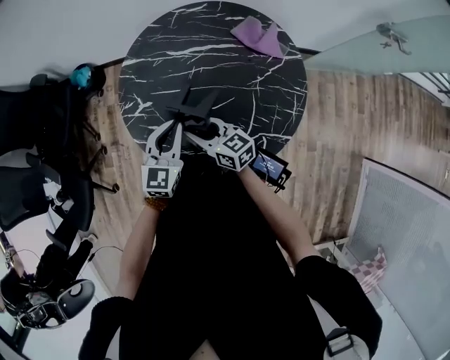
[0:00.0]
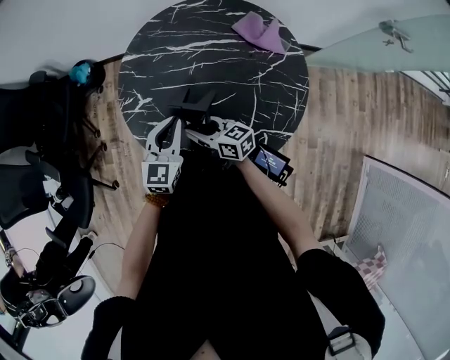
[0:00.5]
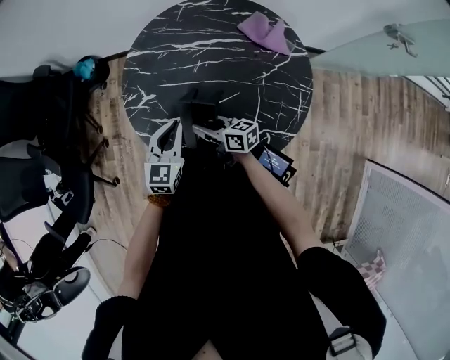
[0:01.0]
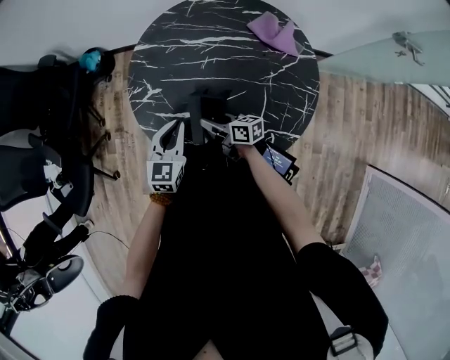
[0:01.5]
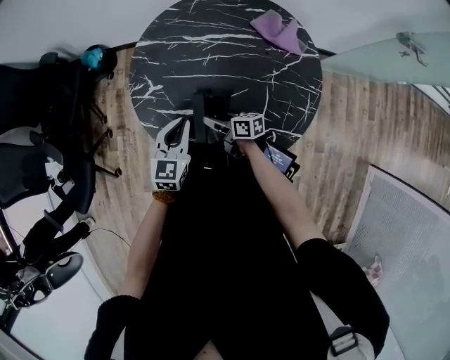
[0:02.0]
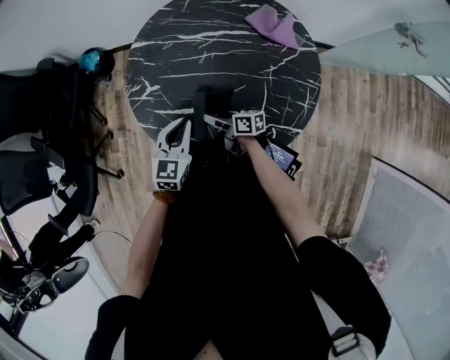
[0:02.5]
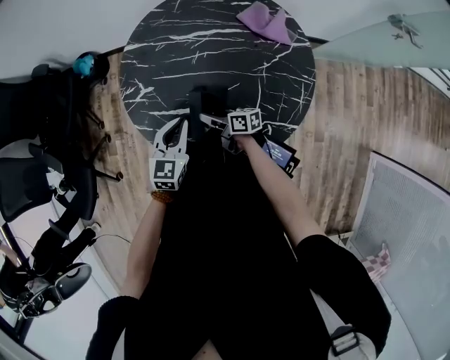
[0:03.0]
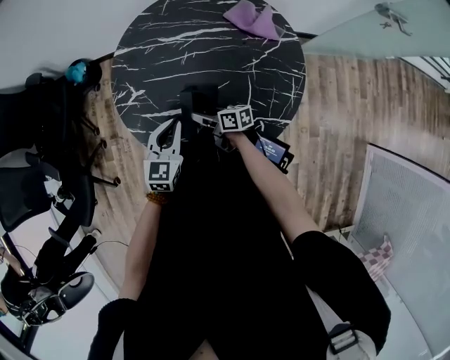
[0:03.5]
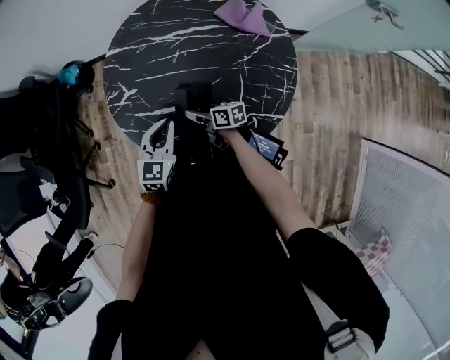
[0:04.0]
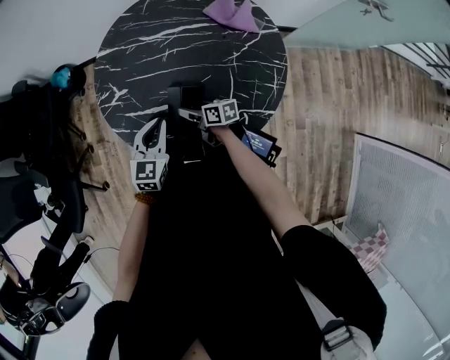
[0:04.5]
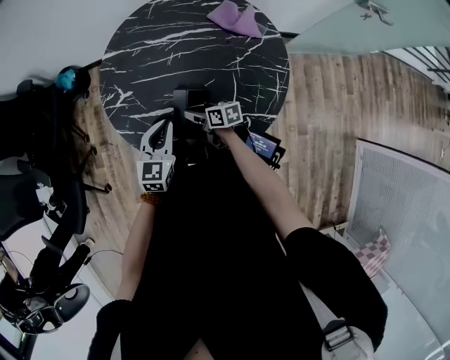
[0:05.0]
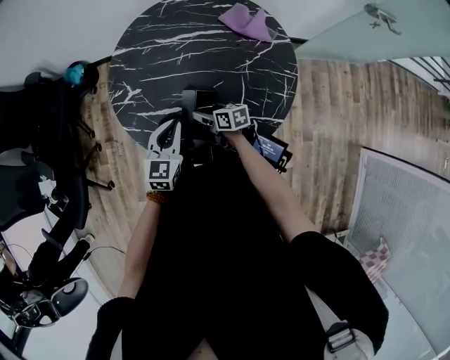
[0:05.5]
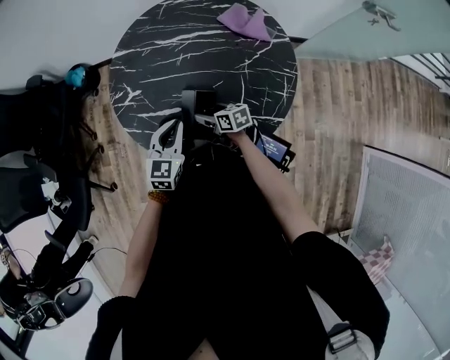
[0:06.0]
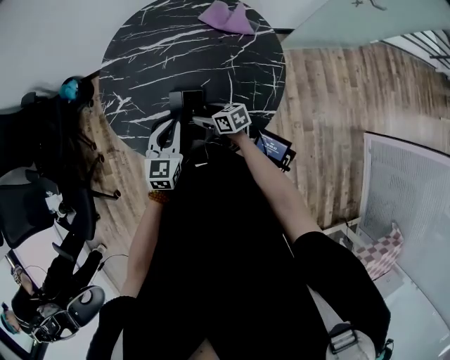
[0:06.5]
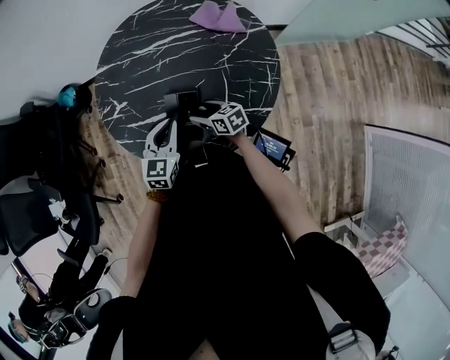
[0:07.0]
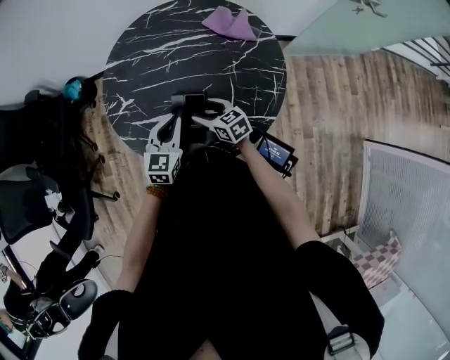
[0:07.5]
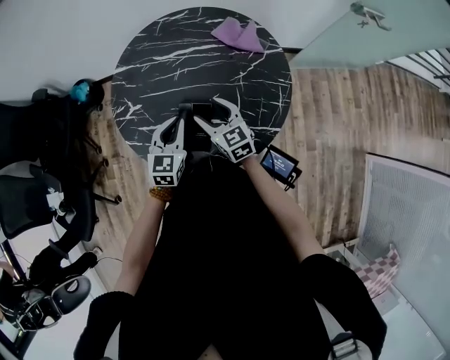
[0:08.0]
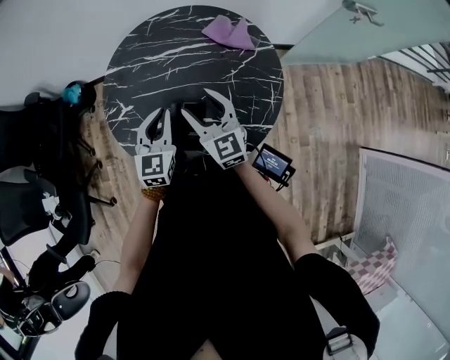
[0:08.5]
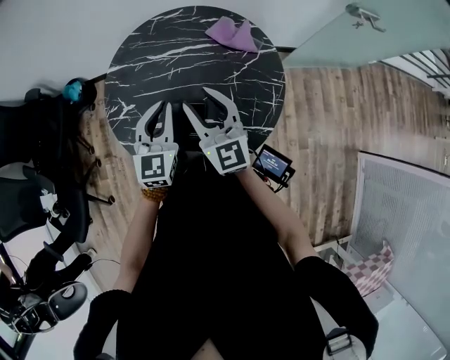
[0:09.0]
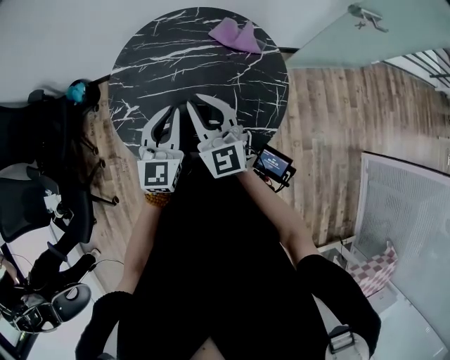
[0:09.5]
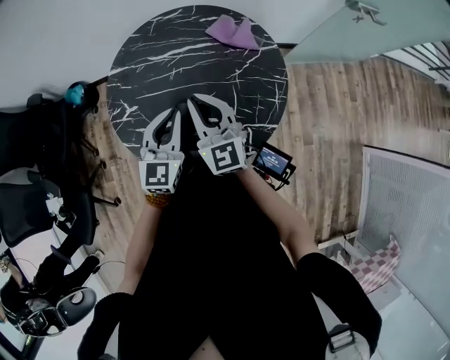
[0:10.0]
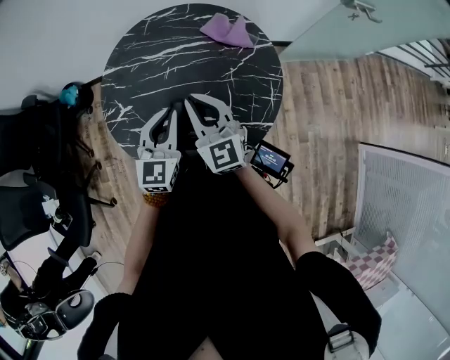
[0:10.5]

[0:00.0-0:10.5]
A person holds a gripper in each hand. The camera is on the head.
0:00.0 to 0:02.0: The right gripper shifts approximately 15 cm downward, and changes its angle by some 30 degrees; the left gripper shifts approximately 5 cm downward.
0:02.0 to 0:04.0: The grippers make only small movements.
0:04.0 to 0:06.5: The right gripper moves roughly 5 cm.
0:06.5 to 0:08.5: The left gripper moves upward and forward, some 10 cm. The right gripper moves upward, roughly 25 cm, and turns by about 50 degrees.
0:08.5 to 0:10.5: The right gripper closes its fingers.

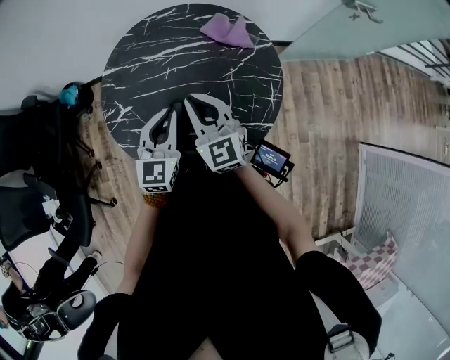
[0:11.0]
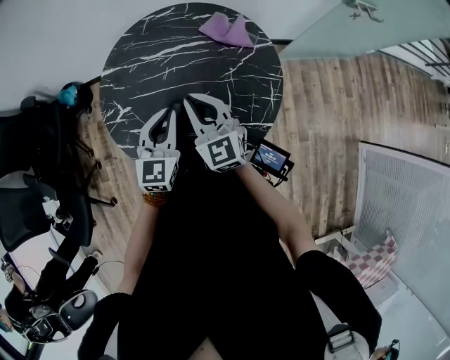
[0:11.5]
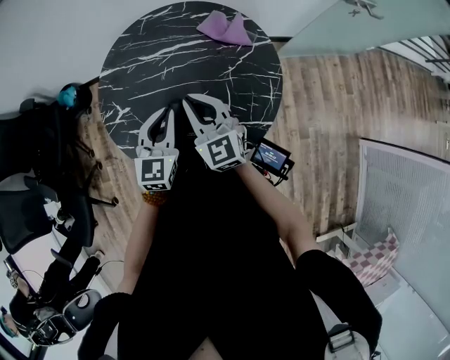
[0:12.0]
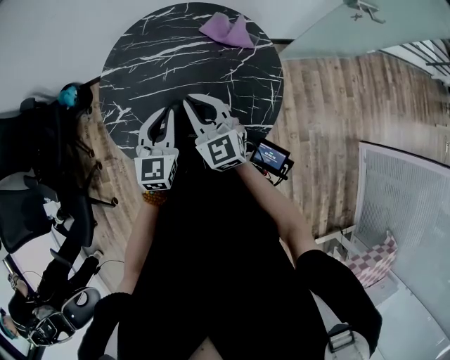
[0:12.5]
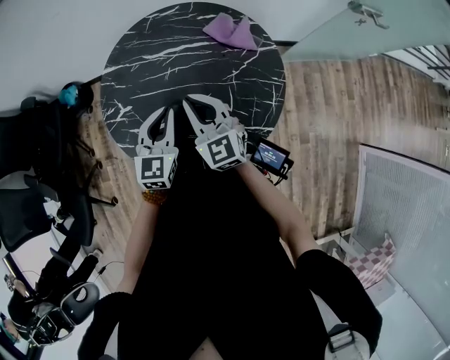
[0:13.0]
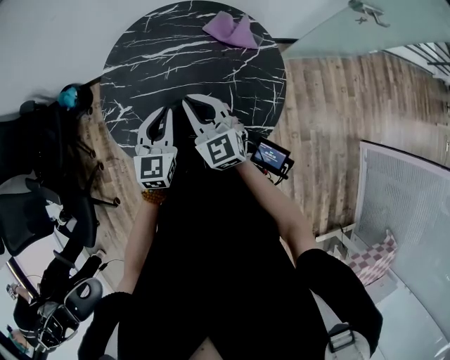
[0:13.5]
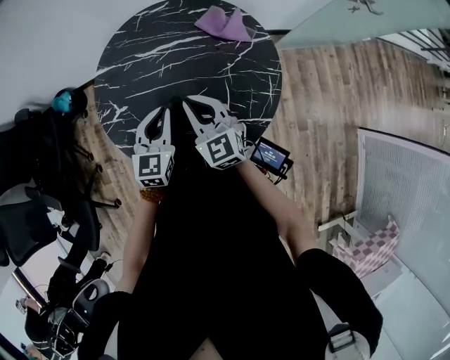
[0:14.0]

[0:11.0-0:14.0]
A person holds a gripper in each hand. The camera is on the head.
0:11.0 to 0:14.0: The grippers make only small movements.

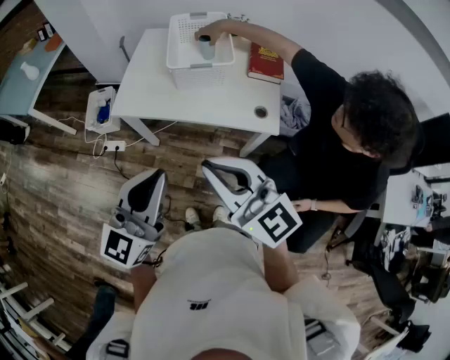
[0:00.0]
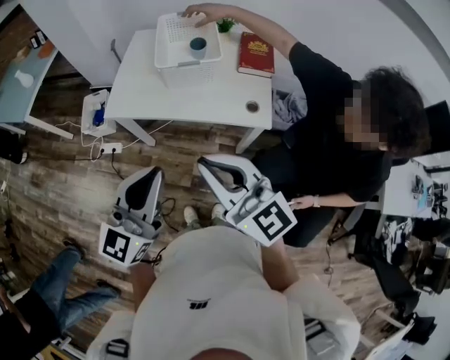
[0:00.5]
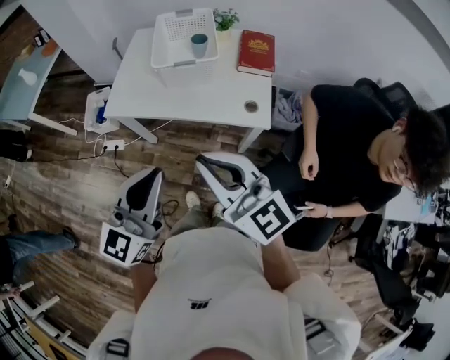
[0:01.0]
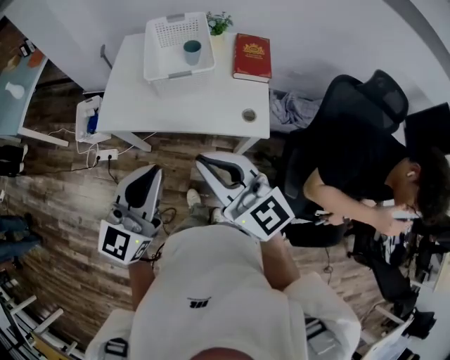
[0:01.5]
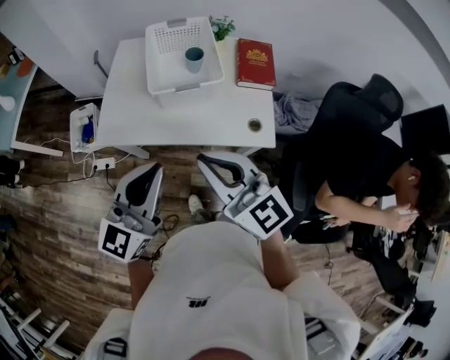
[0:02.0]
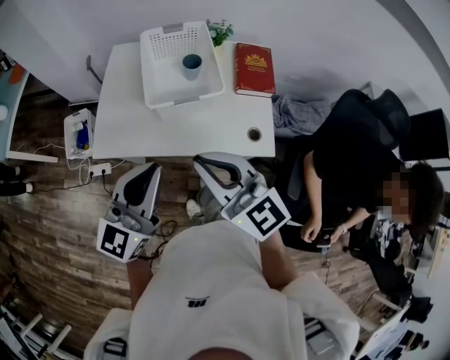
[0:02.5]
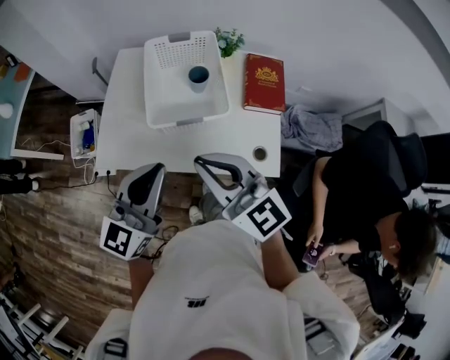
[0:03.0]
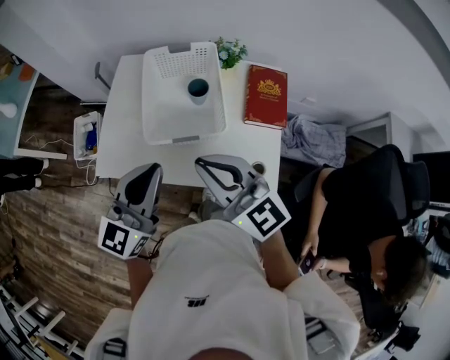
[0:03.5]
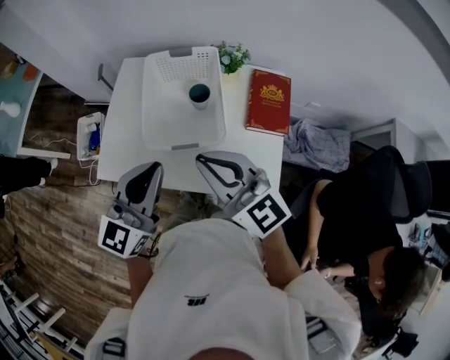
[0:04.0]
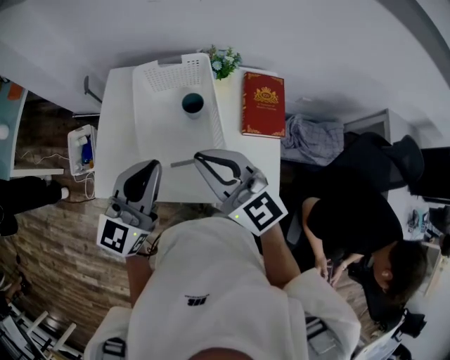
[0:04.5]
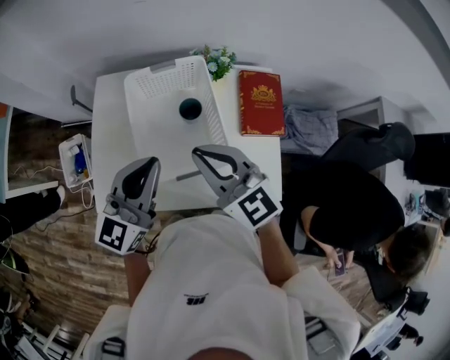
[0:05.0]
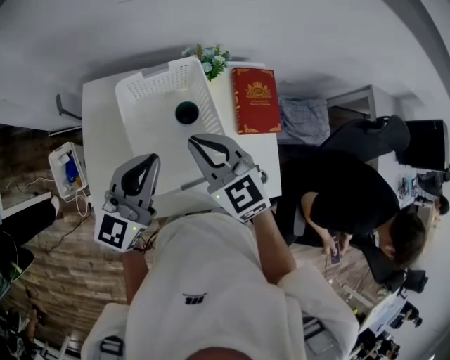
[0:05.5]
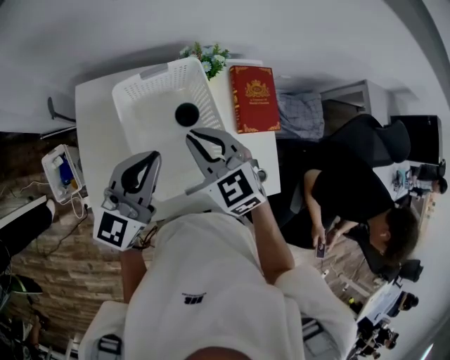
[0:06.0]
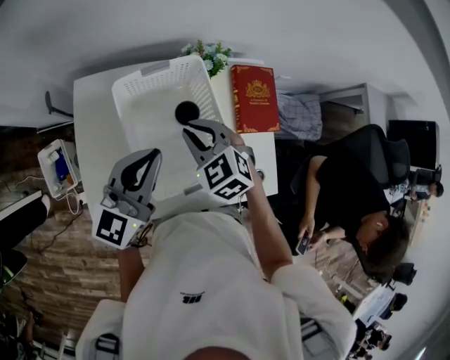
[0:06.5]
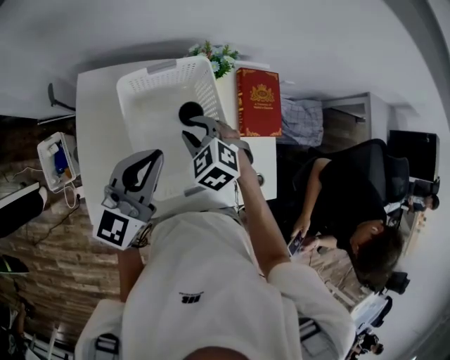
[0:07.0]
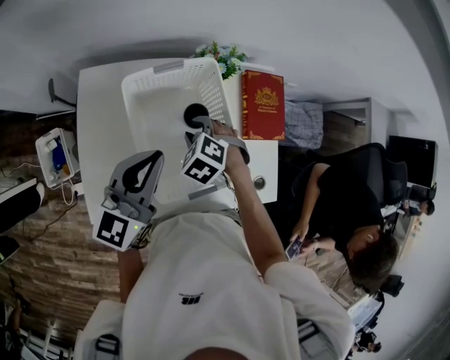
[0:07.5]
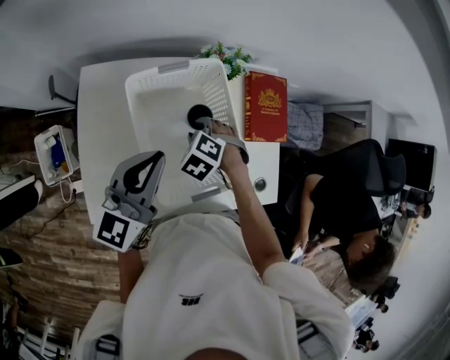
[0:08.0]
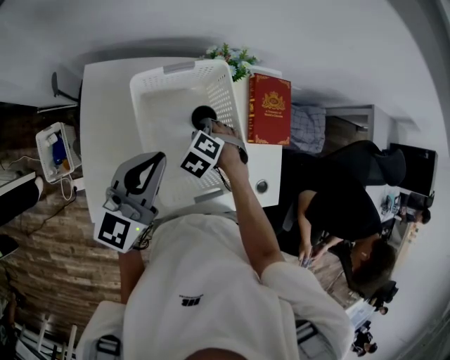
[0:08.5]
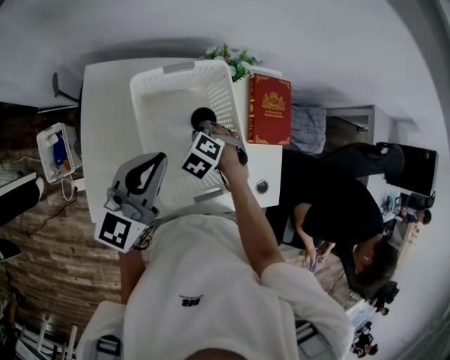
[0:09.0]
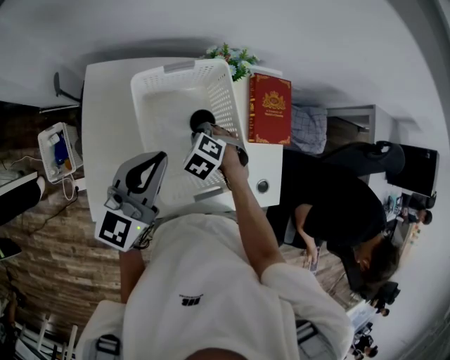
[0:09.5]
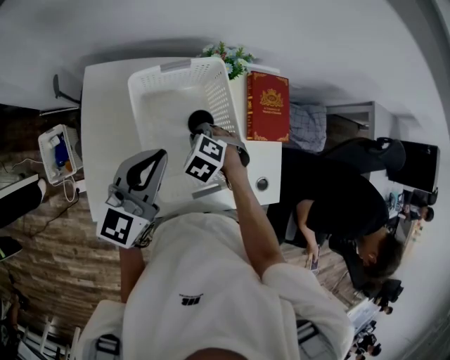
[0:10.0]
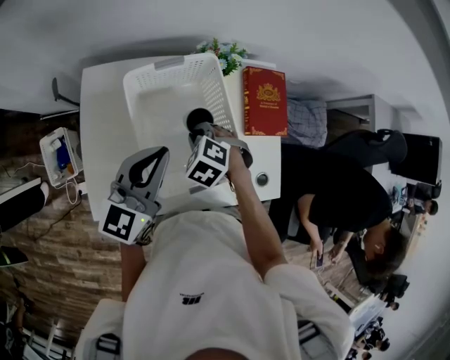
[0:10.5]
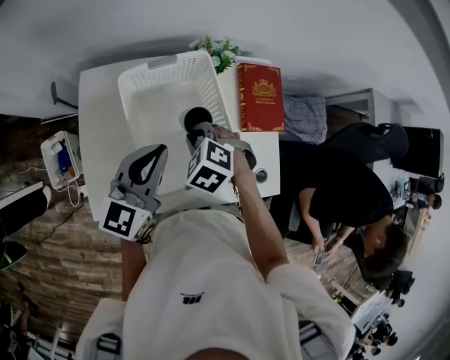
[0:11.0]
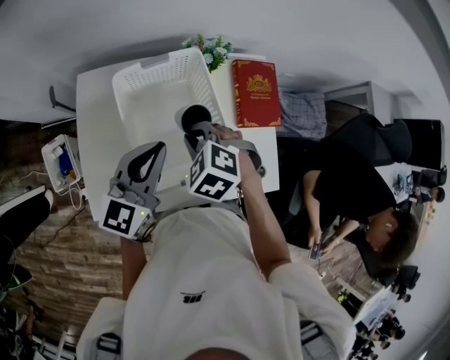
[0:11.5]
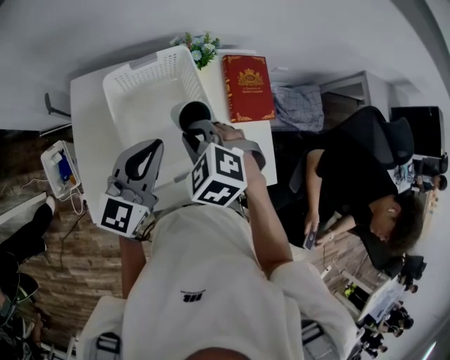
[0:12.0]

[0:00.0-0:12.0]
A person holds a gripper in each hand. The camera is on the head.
0:00.0 to 0:02.0: The two grippers go roughly 15 cm forward.
0:02.0 to 0:04.0: The two grippers go roughly 20 cm forward.
0:04.0 to 0:06.0: The right gripper travels forward and downward by about 25 cm, and tips its fingers downward by approximately 30 degrees, while the left gripper is displaced forward by approximately 20 cm.
0:06.0 to 0:08.0: The right gripper goes about 20 cm downward, points its fingers roughly 40 degrees further downward, and opens its fingers.
0:08.0 to 0:10.0: The grippers move only a little.
0:10.0 to 0:12.0: The right gripper moves upward, roughly 15 cm, while the left gripper moves to the right, approximately 5 cm.

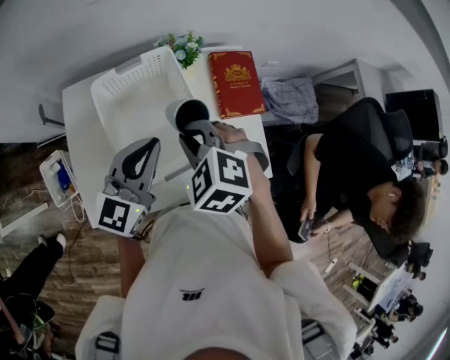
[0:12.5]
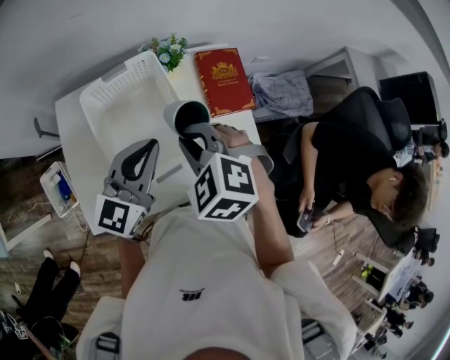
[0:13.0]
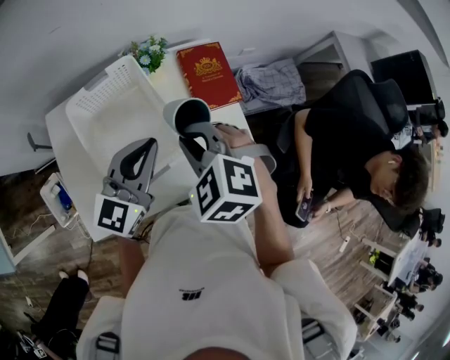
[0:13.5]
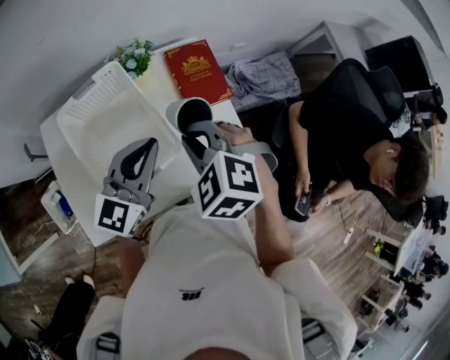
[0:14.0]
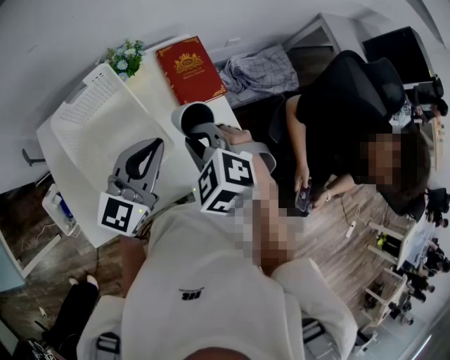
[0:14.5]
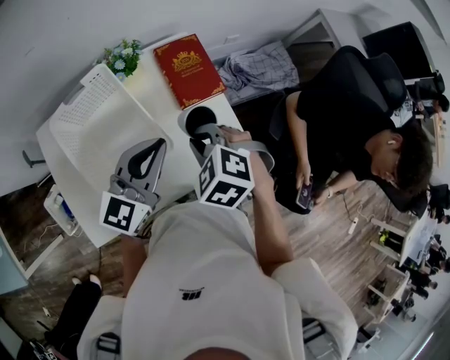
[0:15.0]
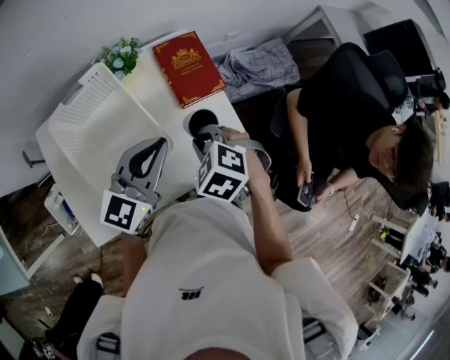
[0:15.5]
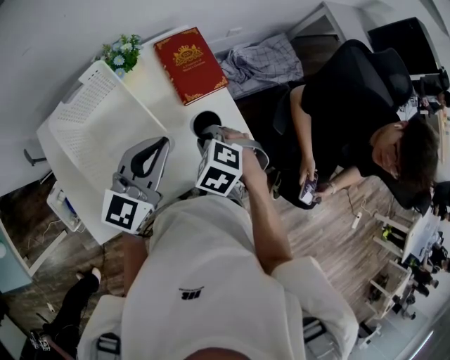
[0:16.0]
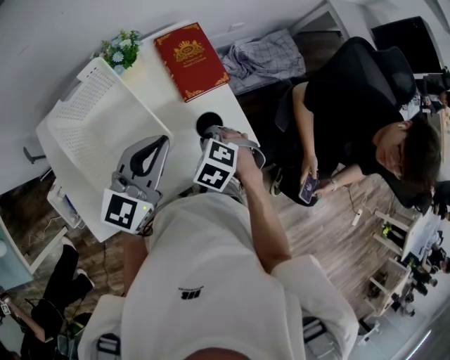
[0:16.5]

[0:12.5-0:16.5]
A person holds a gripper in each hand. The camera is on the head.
0:12.5 to 0:14.5: Both grippers move to the right, about 15 cm.
0:14.5 to 0:16.5: The right gripper is displaced downward by approximately 15 cm.
